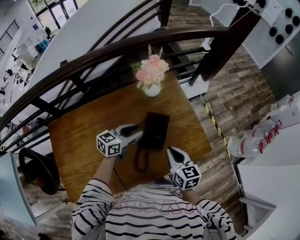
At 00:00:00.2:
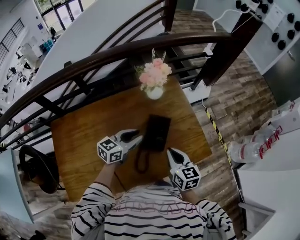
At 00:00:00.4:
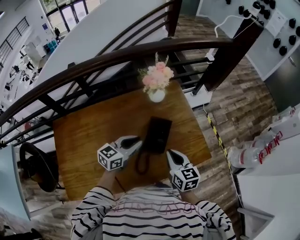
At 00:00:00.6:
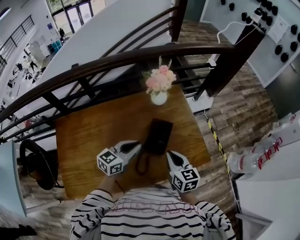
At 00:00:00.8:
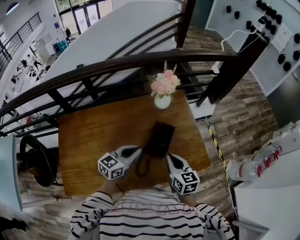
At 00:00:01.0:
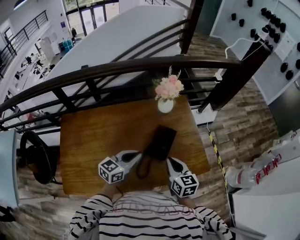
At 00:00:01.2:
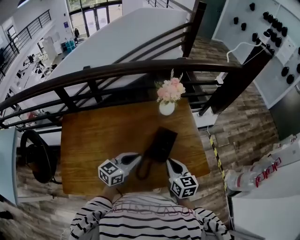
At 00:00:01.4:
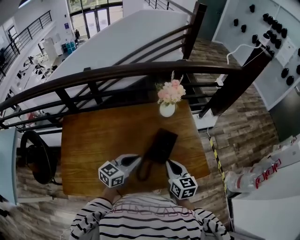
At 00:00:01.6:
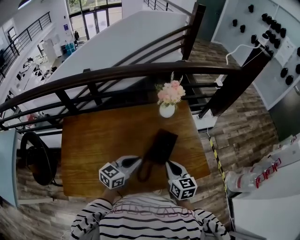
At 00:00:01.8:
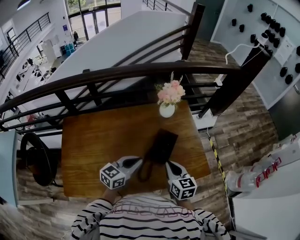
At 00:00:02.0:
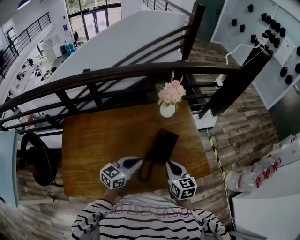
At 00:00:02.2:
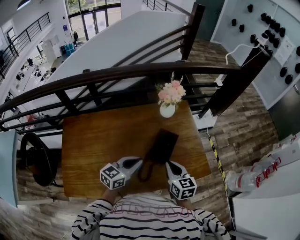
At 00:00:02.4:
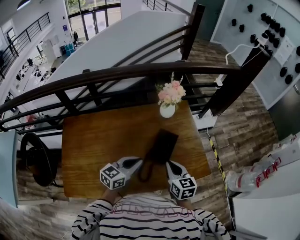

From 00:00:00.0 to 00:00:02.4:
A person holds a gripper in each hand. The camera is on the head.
From 00:00:00.0 to 00:00:01.2: The left gripper is displaced backward and upward by roughly 15 cm, and closes.
From 00:00:01.2 to 00:00:02.4: The grippers stay close to where they were, moving slightly.

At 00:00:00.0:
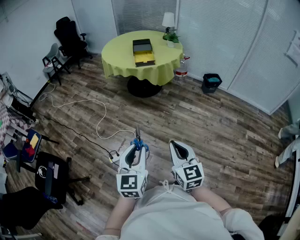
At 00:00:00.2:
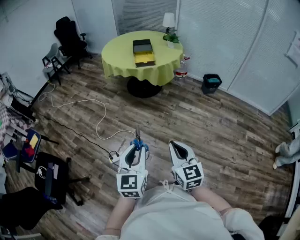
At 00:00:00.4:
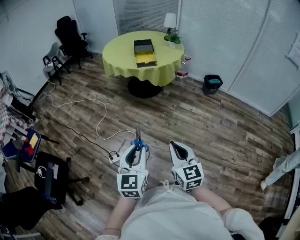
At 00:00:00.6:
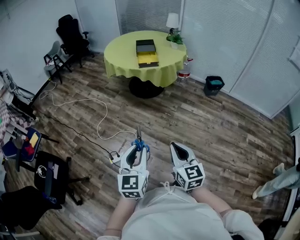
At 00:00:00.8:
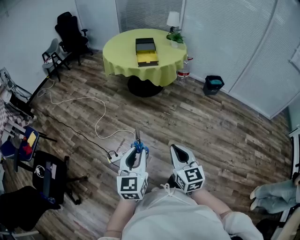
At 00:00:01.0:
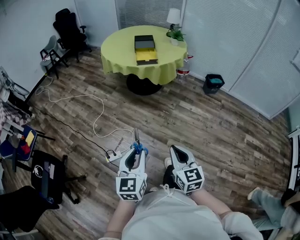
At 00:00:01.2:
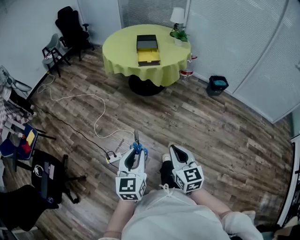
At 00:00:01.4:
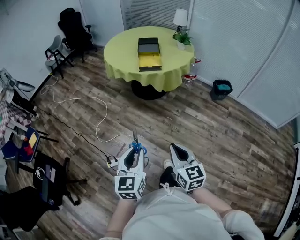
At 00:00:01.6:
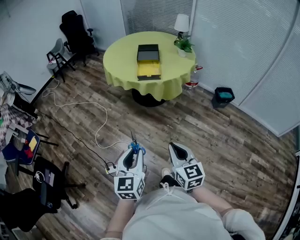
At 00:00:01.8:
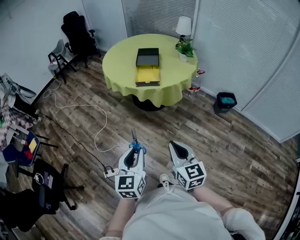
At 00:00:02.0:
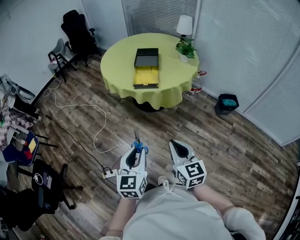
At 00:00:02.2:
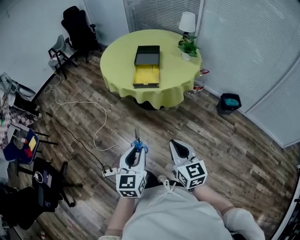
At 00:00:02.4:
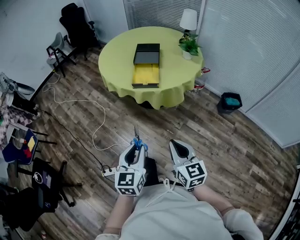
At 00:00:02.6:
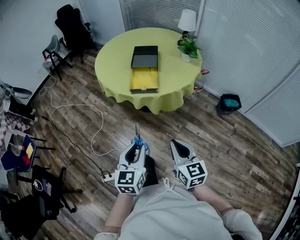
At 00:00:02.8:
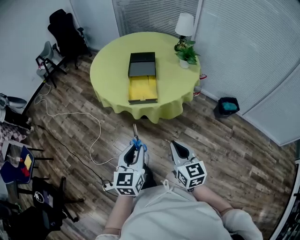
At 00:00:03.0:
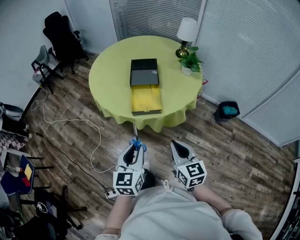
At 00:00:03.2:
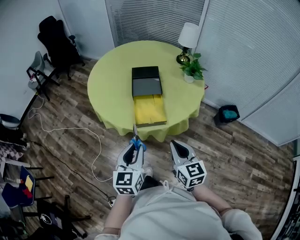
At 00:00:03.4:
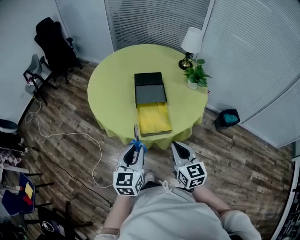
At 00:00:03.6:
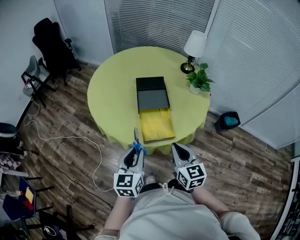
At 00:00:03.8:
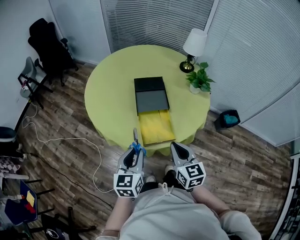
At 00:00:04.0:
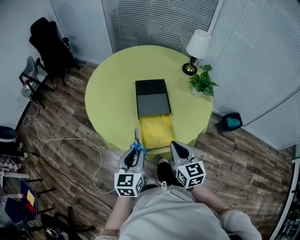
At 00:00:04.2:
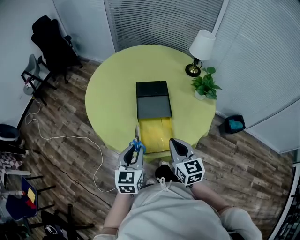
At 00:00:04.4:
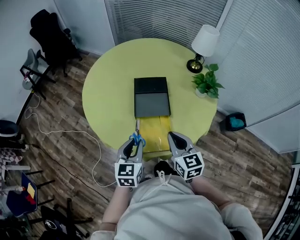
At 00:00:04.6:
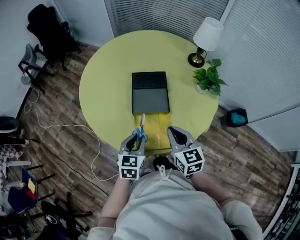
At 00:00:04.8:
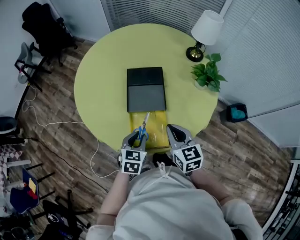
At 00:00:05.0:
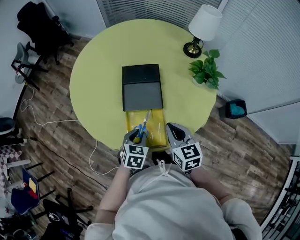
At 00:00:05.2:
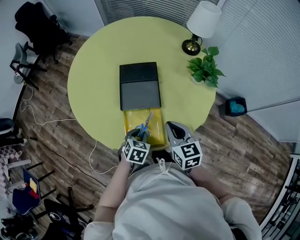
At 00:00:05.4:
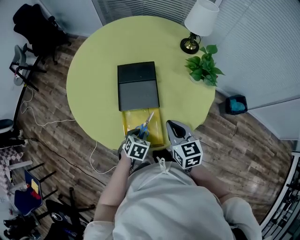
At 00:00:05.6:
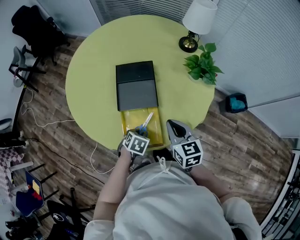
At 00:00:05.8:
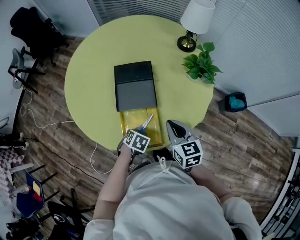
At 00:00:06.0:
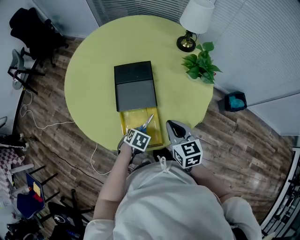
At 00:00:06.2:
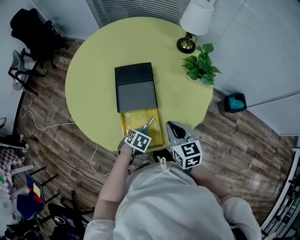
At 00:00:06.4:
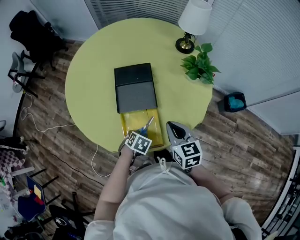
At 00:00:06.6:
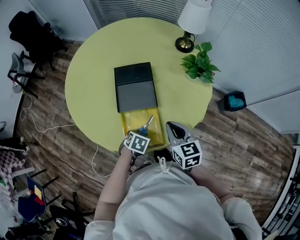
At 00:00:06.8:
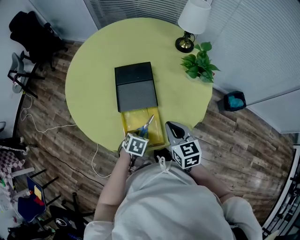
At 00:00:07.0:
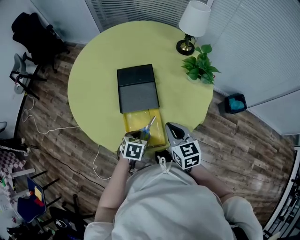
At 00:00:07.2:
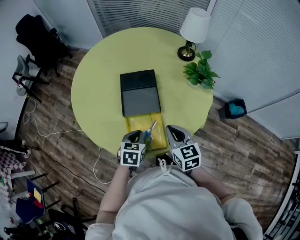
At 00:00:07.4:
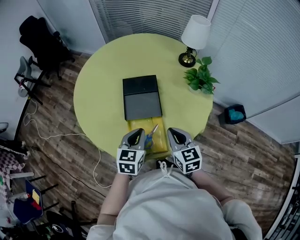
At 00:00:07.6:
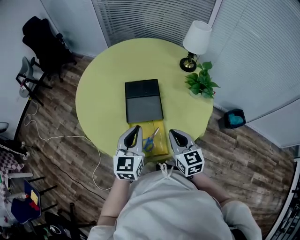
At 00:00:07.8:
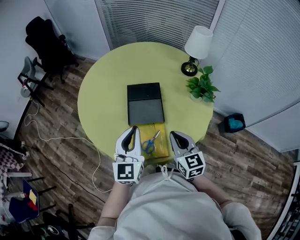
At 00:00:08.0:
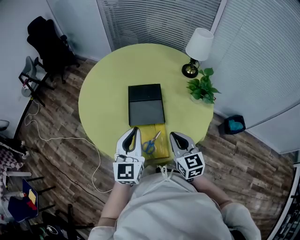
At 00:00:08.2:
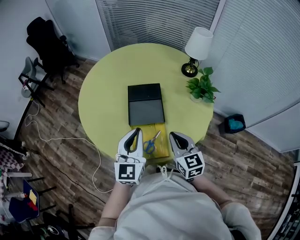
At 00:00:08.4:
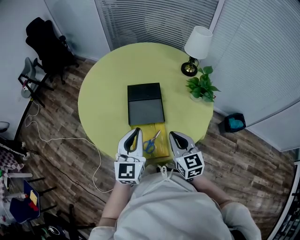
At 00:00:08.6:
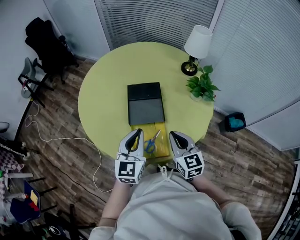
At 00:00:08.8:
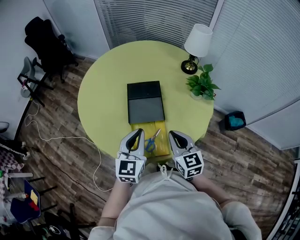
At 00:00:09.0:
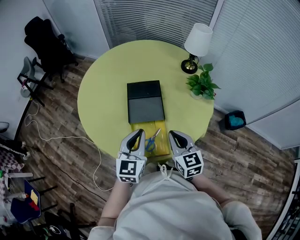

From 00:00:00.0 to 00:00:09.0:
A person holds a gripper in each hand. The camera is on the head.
From 00:00:00.0 to 00:00:01.6: The two grippers go approximately 25 cm forward.
From 00:00:01.6 to 00:00:03.0: Both grippers move forward, approximately 40 cm.
From 00:00:03.0 to 00:00:04.4: The grippers both shift forward by approximately 30 cm.
From 00:00:04.4 to 00:00:06.0: The right gripper changes place by approximately 10 cm; the left gripper goes about 20 cm downward, and tips its fingers downward by some 50 degrees.
From 00:00:06.0 to 00:00:07.6: The right gripper goes about 5 cm upward. Meanwhile the left gripper shifts approximately 25 cm upward, tilts its fingers about 60 degrees upward, and opens, then closes again.
From 00:00:07.6 to 00:00:09.0: The grippers make only small movements.

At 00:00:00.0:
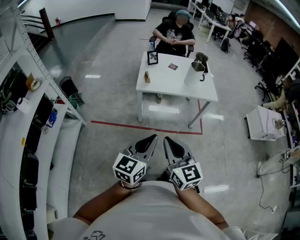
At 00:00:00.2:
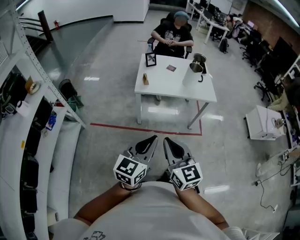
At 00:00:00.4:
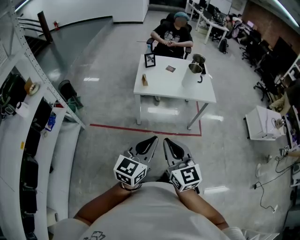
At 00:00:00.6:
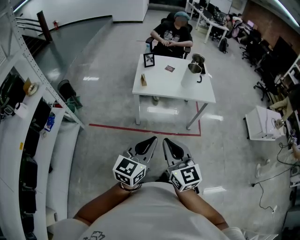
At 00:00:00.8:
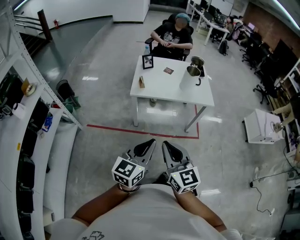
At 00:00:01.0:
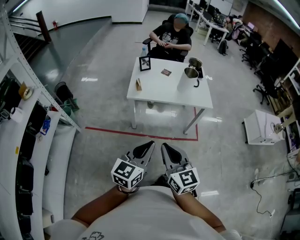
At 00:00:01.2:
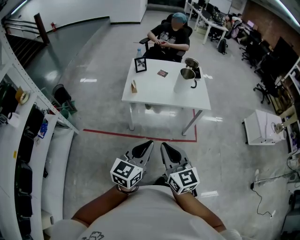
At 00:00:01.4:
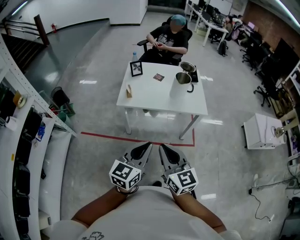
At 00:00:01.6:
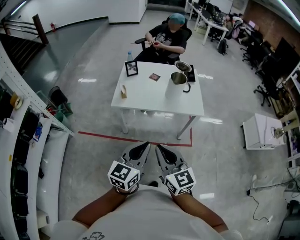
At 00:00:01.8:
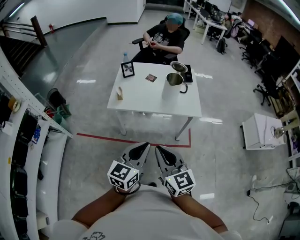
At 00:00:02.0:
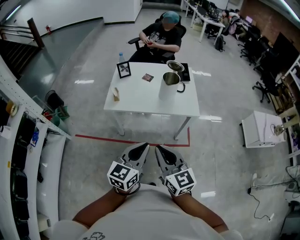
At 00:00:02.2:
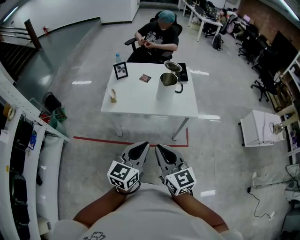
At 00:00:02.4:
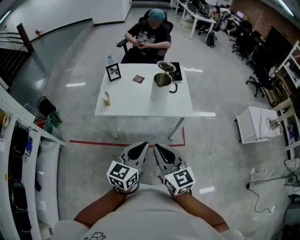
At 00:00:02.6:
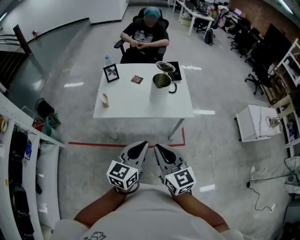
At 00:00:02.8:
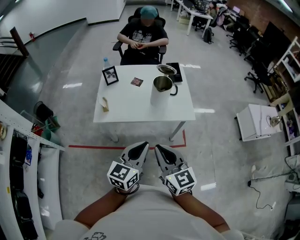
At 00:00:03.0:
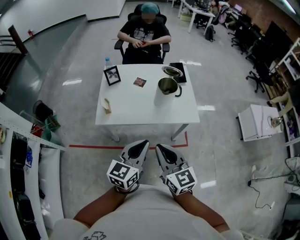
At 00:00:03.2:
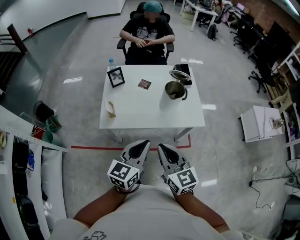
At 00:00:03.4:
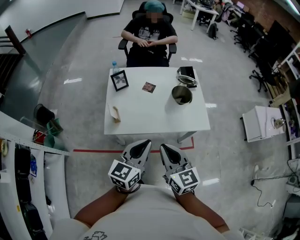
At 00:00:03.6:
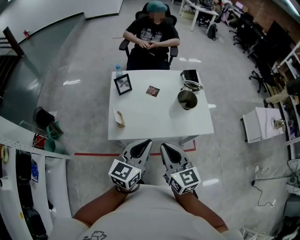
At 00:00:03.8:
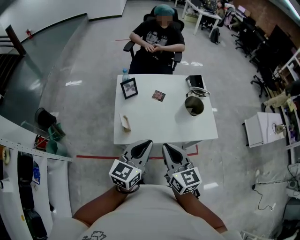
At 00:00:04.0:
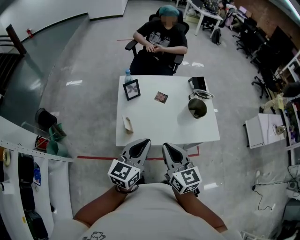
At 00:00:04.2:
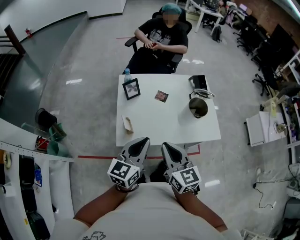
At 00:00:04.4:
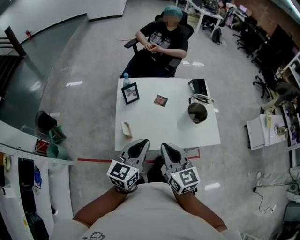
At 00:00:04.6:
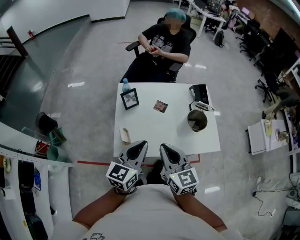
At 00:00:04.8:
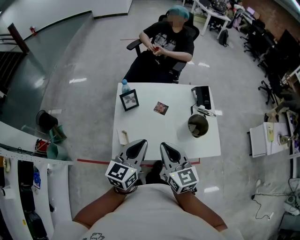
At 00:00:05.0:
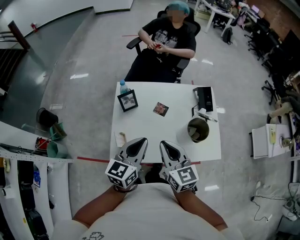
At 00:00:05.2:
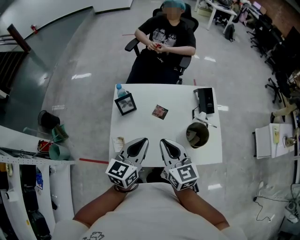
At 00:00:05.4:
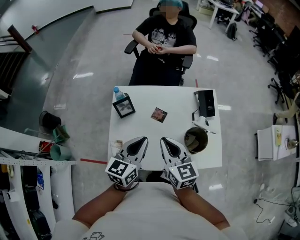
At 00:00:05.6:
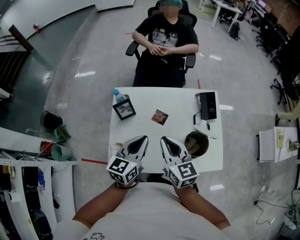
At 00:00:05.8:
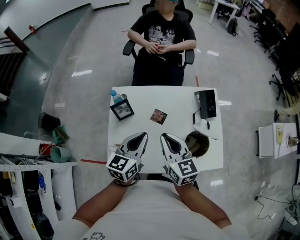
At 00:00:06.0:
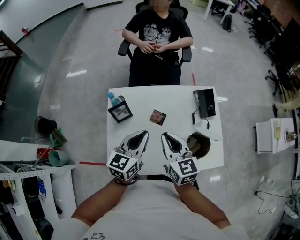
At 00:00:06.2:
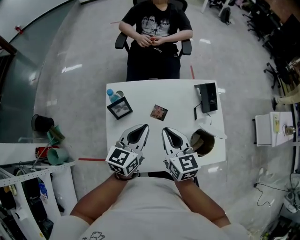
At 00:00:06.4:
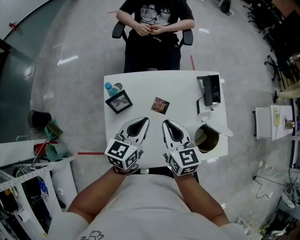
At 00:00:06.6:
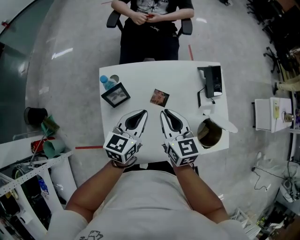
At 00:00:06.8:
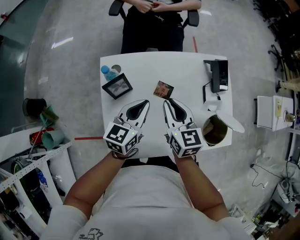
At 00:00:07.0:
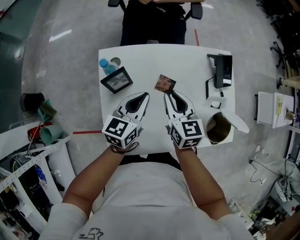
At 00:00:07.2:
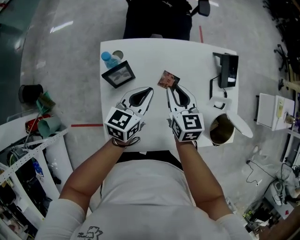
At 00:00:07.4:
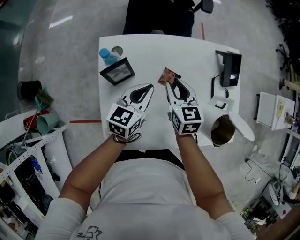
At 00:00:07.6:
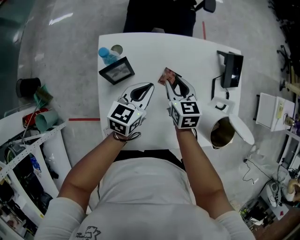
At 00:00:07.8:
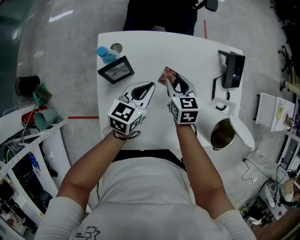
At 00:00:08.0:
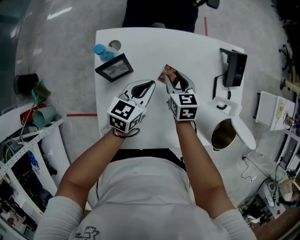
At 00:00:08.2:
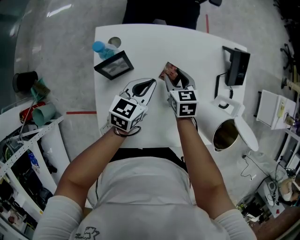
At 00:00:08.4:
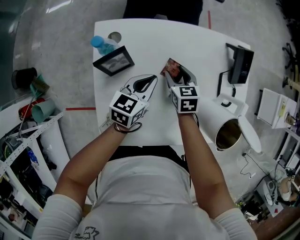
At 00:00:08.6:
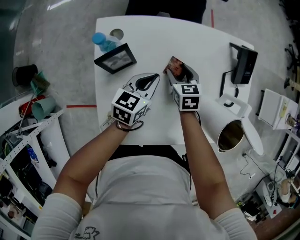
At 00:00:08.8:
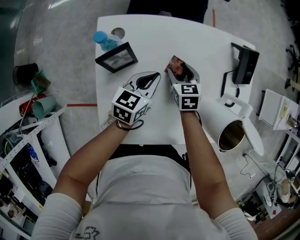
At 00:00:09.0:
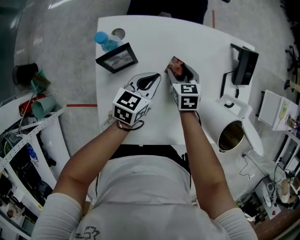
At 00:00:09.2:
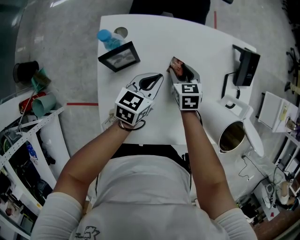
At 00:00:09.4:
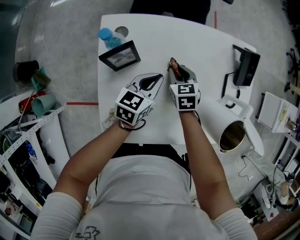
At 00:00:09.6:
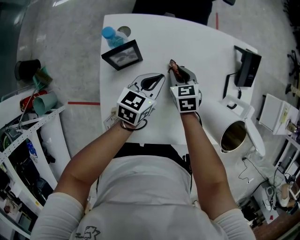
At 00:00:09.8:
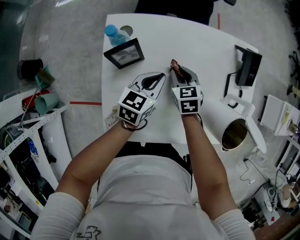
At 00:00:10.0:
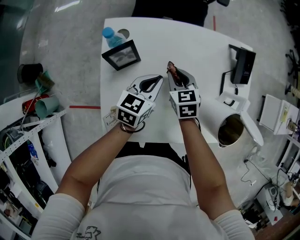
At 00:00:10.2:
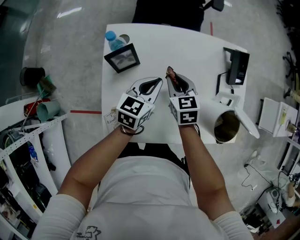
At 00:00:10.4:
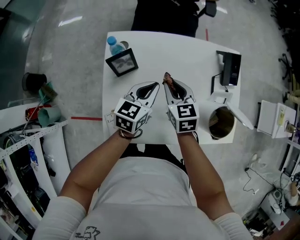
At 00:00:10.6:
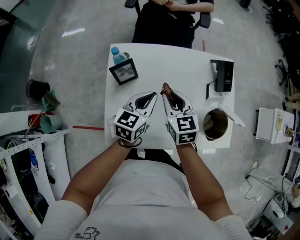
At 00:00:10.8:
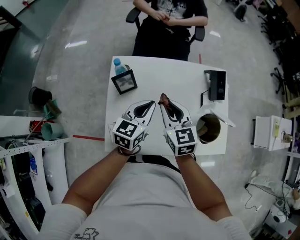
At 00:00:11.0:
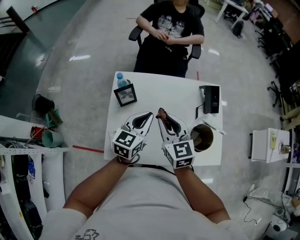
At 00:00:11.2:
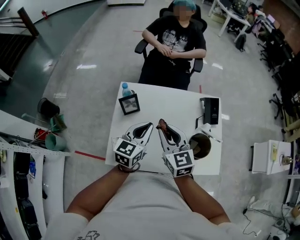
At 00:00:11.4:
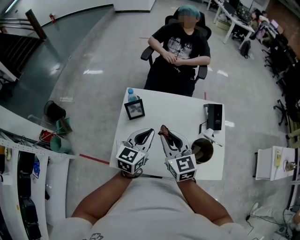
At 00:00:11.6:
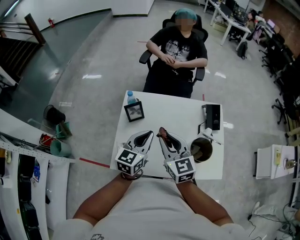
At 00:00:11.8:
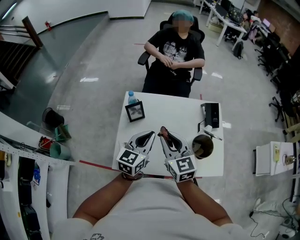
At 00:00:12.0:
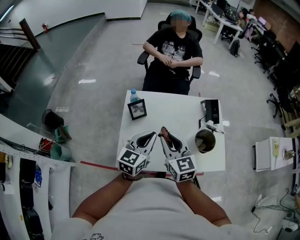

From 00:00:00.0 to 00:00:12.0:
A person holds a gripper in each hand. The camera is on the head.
From 00:00:00.0 to 00:00:01.6: The right gripper travels forward and to the right by about 25 cm. The left gripper is displaced to the right and forward by roughly 25 cm.
From 00:00:01.6 to 00:00:03.0: The grippers both shift forward by about 20 cm.
From 00:00:03.0 to 00:00:04.4: The left gripper heads to the left and forward, covering about 25 cm. Meanwhile the right gripper is displaced forward and to the left by about 25 cm.
From 00:00:04.4 to 00:00:06.0: Both grippers travel together forward, about 25 cm.
From 00:00:06.0 to 00:00:07.6: Both grippers travel together downward and forward, approximately 20 cm. The right gripper opens up.
From 00:00:07.6 to 00:00:09.0: The left gripper goes about 5 cm downward. Meanwhile the right gripper goes approximately 10 cm downward, and opens.
From 00:00:09.0 to 00:00:10.4: The right gripper goes about 15 cm upward and backward, and closes its fingers; the left gripper goes some 10 cm upward.
From 00:00:10.4 to 00:00:12.0: Both grippers move upward and backward, roughly 25 cm. The right gripper turns by about 20 degrees.
